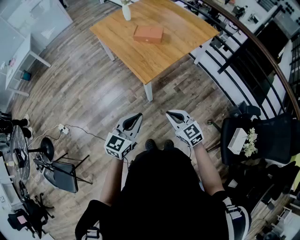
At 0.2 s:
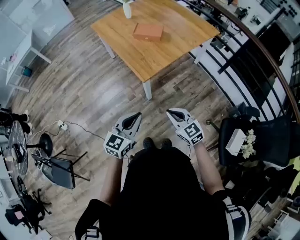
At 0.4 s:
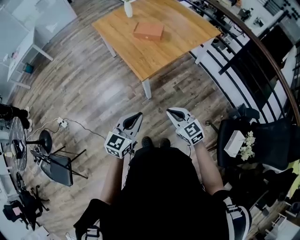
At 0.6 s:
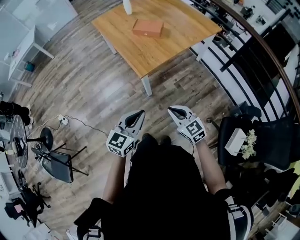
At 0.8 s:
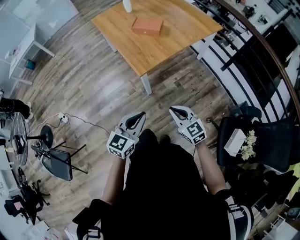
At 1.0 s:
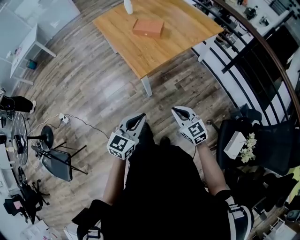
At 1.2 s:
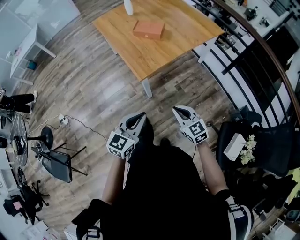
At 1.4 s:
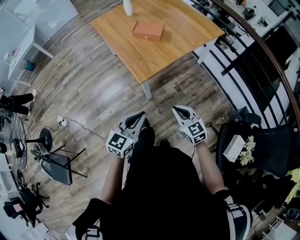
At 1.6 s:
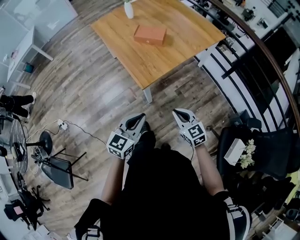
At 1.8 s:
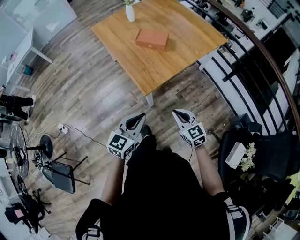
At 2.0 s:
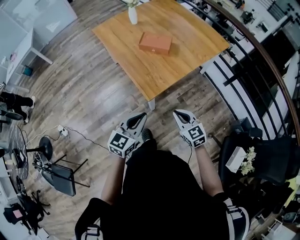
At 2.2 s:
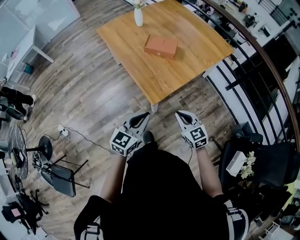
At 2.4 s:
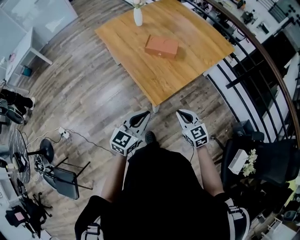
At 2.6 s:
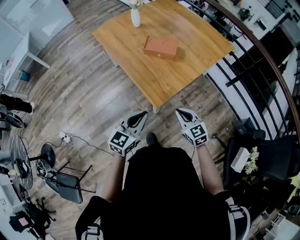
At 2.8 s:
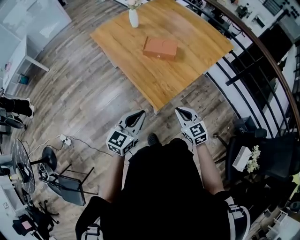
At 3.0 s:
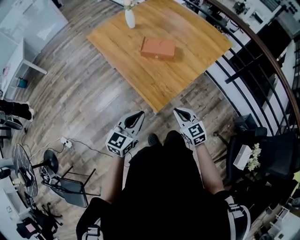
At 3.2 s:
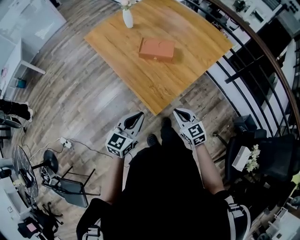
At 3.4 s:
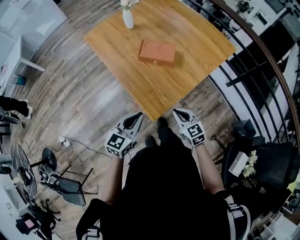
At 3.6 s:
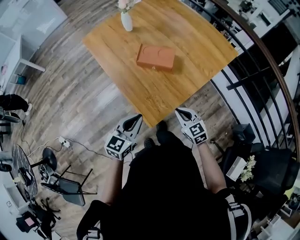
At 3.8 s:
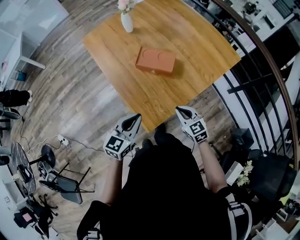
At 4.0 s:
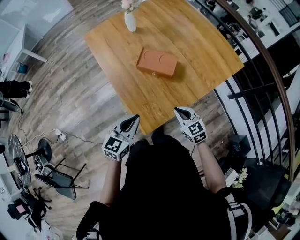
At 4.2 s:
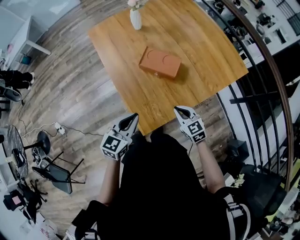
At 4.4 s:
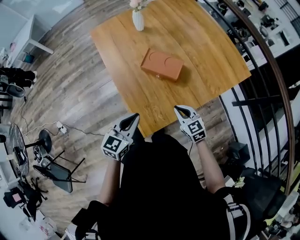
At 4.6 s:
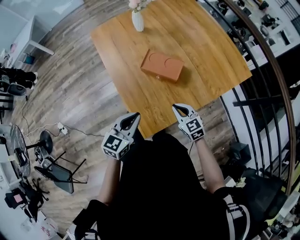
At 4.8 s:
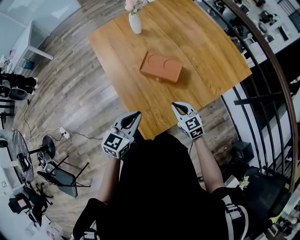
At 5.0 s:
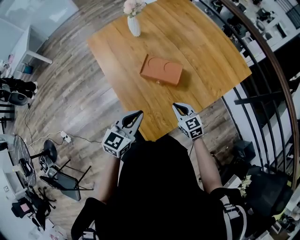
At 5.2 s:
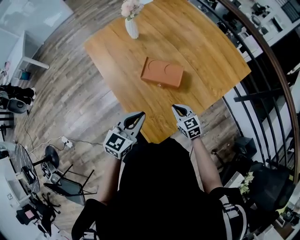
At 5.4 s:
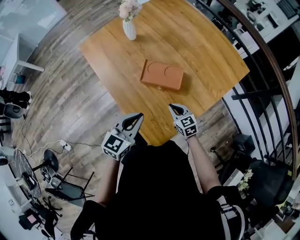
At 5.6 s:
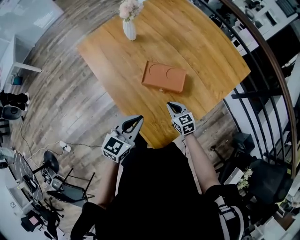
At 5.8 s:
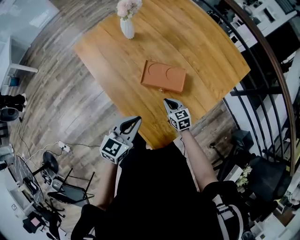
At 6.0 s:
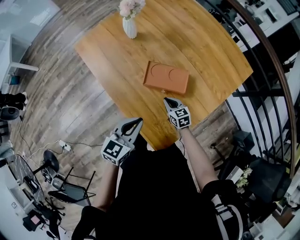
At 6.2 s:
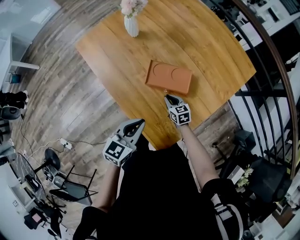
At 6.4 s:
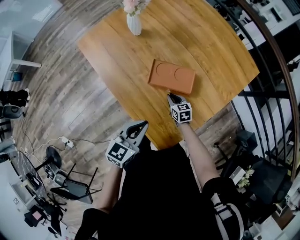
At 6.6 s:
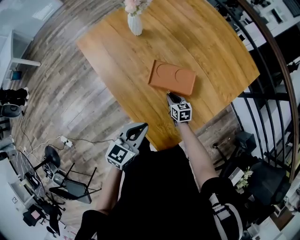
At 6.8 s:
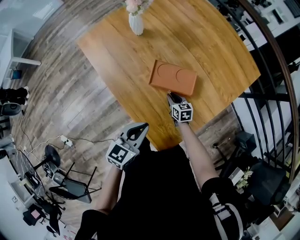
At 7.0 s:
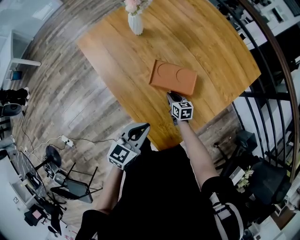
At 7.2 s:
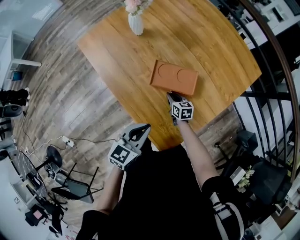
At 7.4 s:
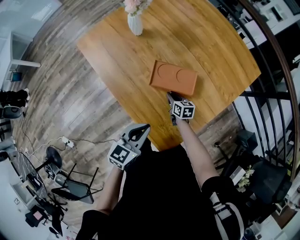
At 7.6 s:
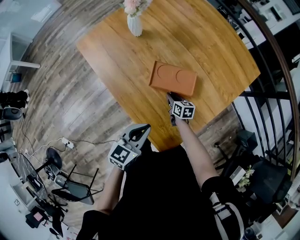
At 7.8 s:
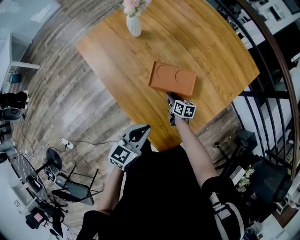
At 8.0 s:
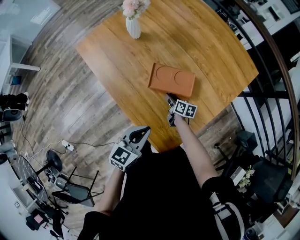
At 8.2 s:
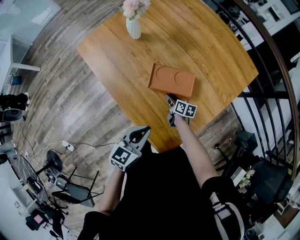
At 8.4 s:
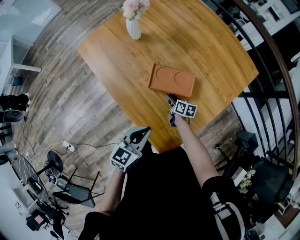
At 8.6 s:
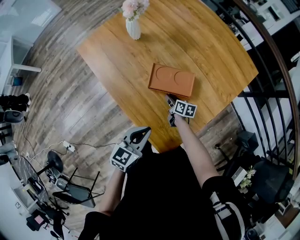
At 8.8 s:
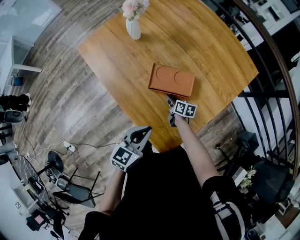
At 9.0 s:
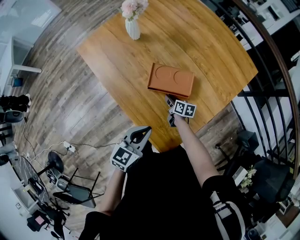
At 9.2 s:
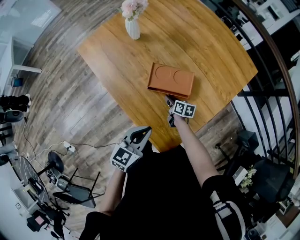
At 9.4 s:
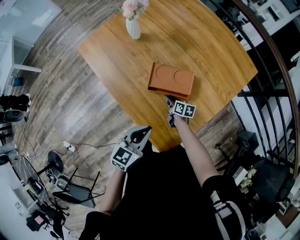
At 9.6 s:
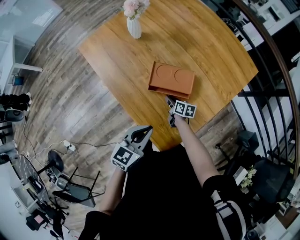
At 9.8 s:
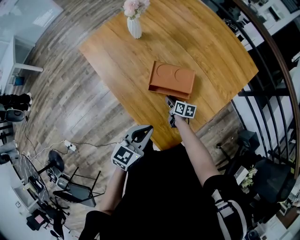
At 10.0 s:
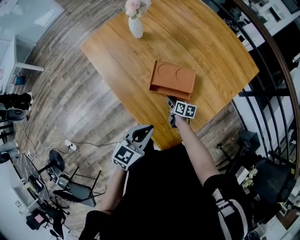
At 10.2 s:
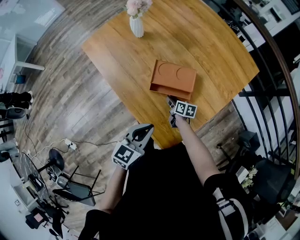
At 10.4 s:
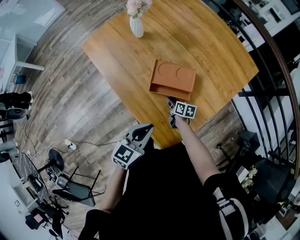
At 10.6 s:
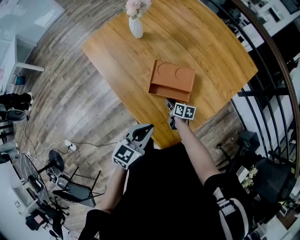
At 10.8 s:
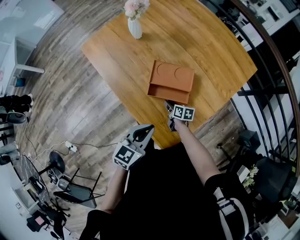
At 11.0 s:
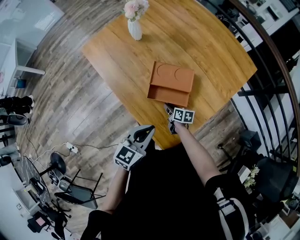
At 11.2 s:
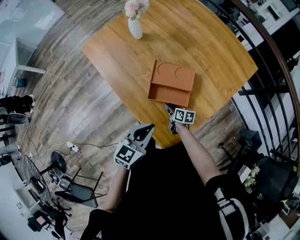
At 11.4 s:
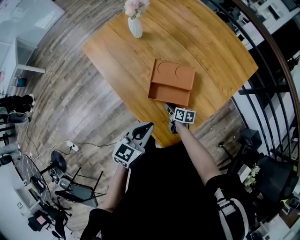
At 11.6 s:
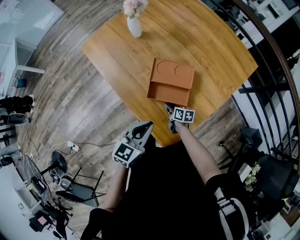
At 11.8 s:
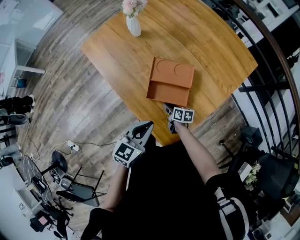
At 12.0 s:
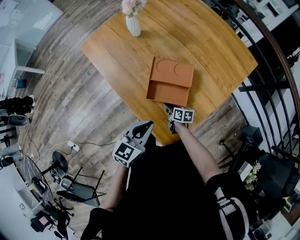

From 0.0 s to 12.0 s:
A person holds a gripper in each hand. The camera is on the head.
From 0.0 s to 1.6 s: The grippers both shift forward and to the right by about 10 cm.
From 1.6 s to 3.0 s: The grippers both shift forward and to the left by some 25 cm.
From 3.0 s to 4.4 s: The right gripper goes about 25 cm forward. The left gripper moves forward and to the right, some 20 cm.
From 4.4 s to 6.0 s: The left gripper is displaced forward and to the left by roughly 15 cm. The right gripper travels forward, downward and to the left by about 25 cm, and swivels some 20 degrees.
From 6.0 s to 7.6 s: The right gripper travels downward by about 5 cm, and changes its angle by approximately 30 degrees.
From 7.6 s to 10.4 s: The grippers move only a little.
From 10.4 s to 12.0 s: The right gripper is displaced backward by approximately 5 cm.

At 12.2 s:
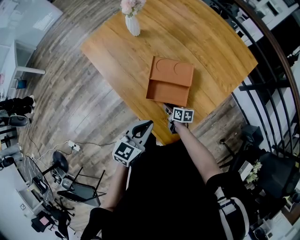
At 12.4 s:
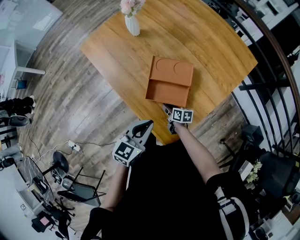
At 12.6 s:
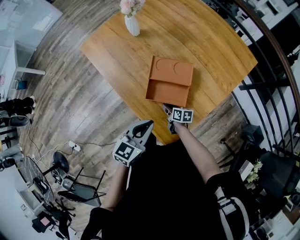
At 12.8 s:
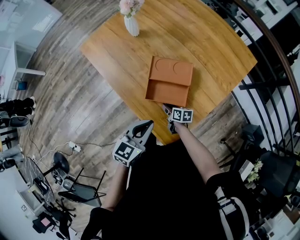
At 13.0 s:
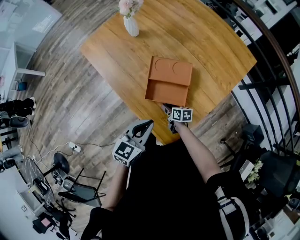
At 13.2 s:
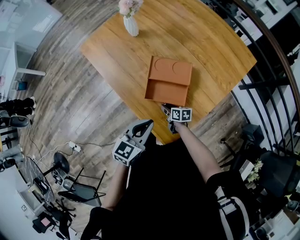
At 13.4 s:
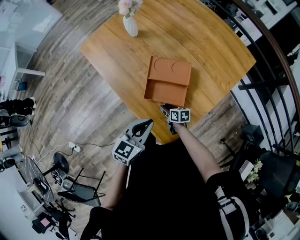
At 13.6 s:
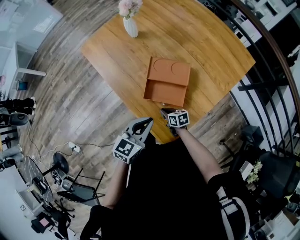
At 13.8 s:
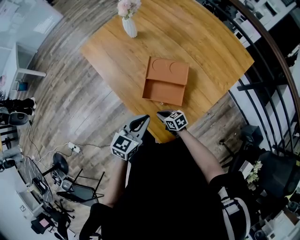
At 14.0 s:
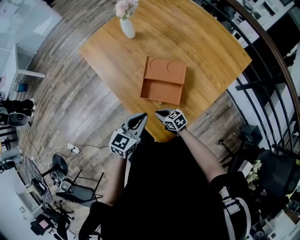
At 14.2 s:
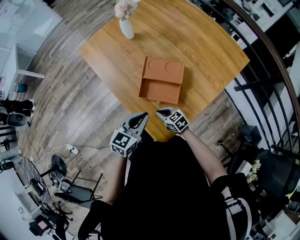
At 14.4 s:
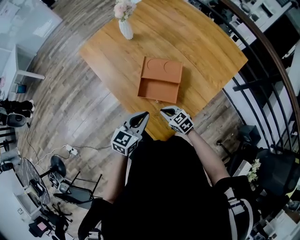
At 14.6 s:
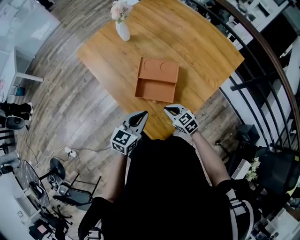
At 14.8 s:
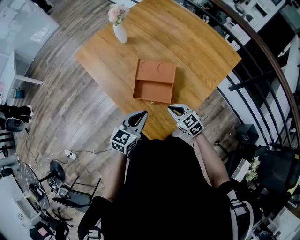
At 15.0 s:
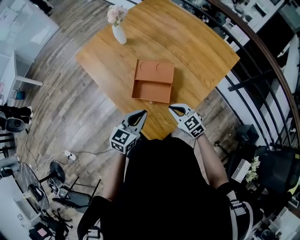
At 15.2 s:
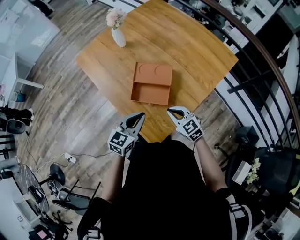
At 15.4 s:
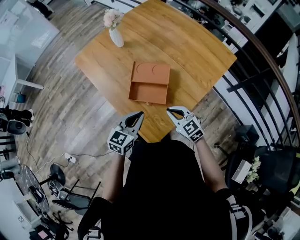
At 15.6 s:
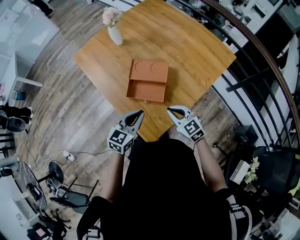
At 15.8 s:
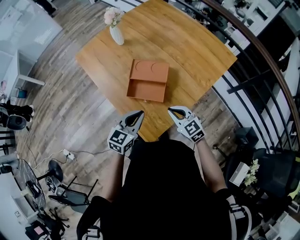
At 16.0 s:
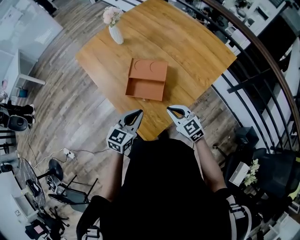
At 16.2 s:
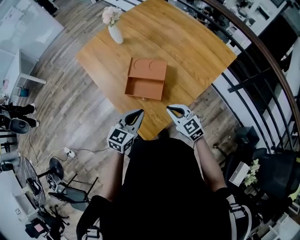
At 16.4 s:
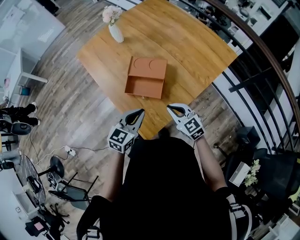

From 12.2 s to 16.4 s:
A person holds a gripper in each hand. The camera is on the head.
From 12.2 s to 13.6 s: The right gripper swivels approximately 20 degrees.
From 13.6 s to 15.0 s: The right gripper is displaced upward and to the right by some 20 cm, and rotates around the line of its fingers by some 40 degrees, counterclockwise from behind.
From 15.0 s to 16.4 s: Both grippers travel together to the right, about 5 cm.

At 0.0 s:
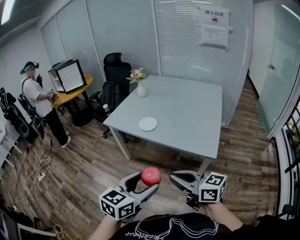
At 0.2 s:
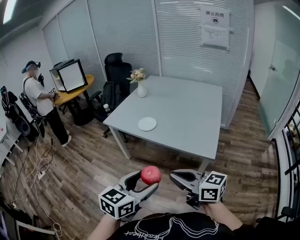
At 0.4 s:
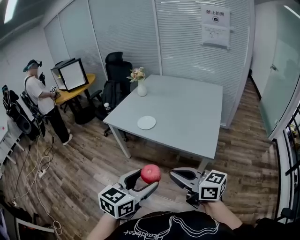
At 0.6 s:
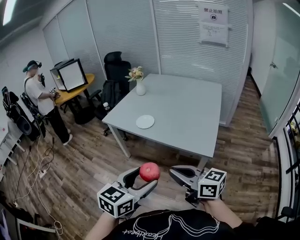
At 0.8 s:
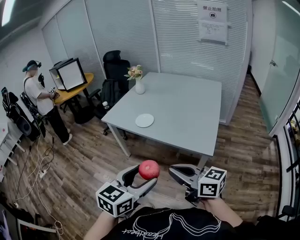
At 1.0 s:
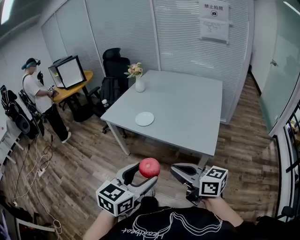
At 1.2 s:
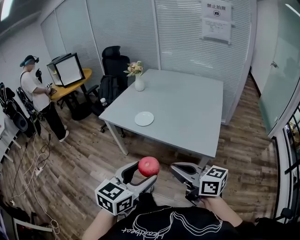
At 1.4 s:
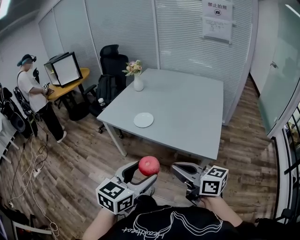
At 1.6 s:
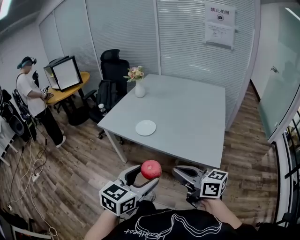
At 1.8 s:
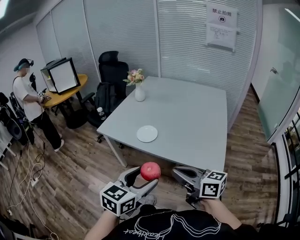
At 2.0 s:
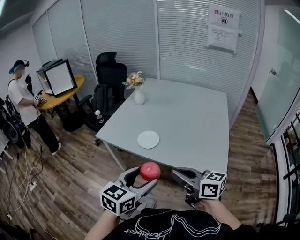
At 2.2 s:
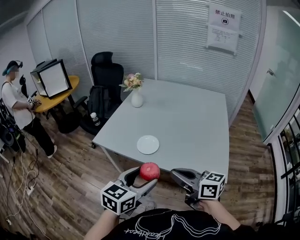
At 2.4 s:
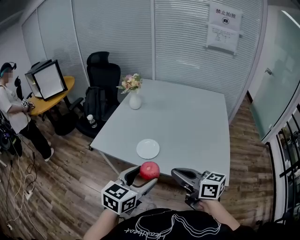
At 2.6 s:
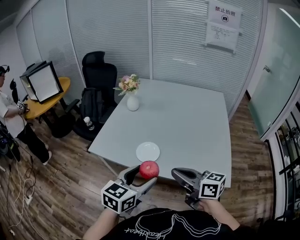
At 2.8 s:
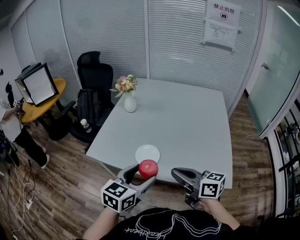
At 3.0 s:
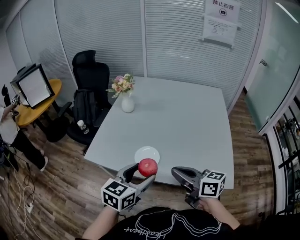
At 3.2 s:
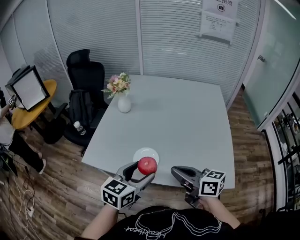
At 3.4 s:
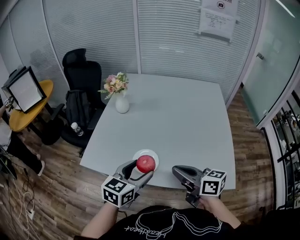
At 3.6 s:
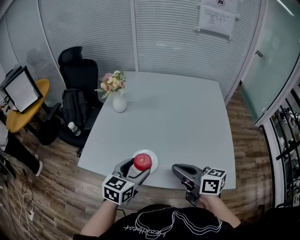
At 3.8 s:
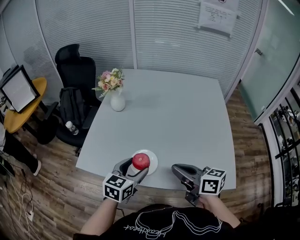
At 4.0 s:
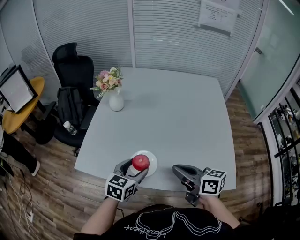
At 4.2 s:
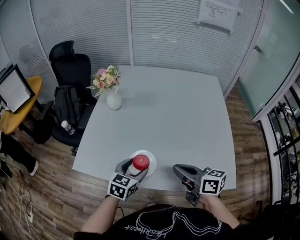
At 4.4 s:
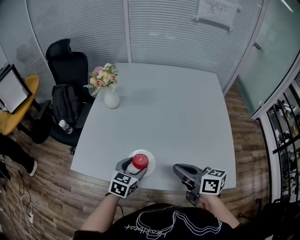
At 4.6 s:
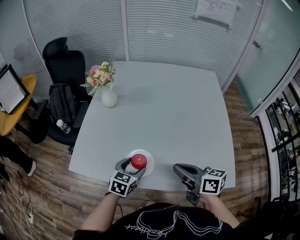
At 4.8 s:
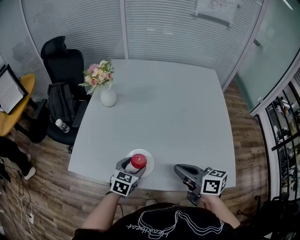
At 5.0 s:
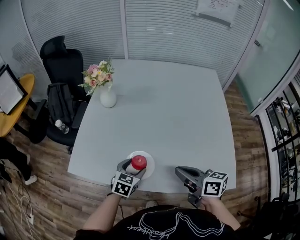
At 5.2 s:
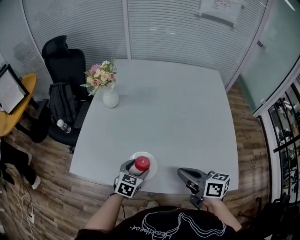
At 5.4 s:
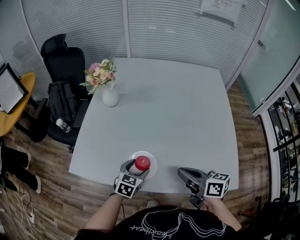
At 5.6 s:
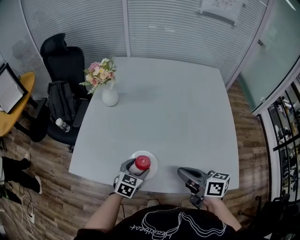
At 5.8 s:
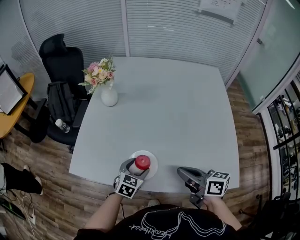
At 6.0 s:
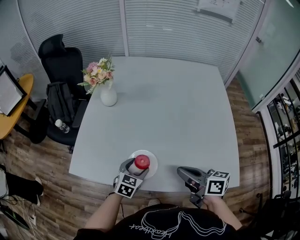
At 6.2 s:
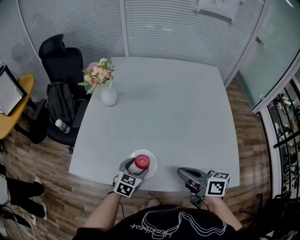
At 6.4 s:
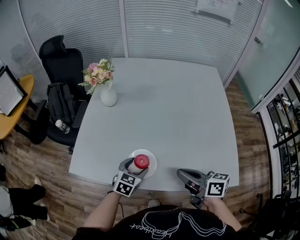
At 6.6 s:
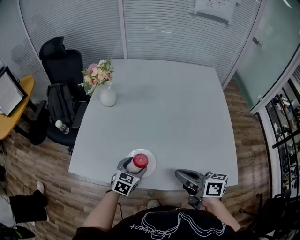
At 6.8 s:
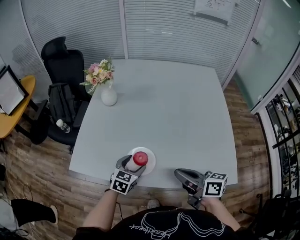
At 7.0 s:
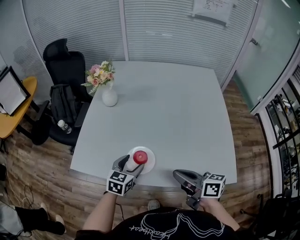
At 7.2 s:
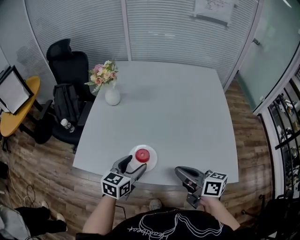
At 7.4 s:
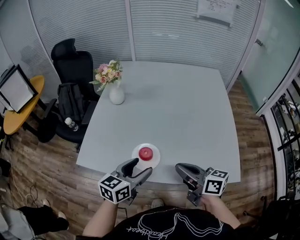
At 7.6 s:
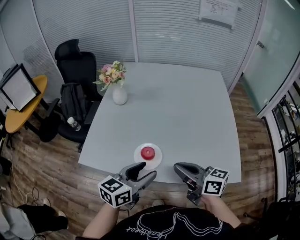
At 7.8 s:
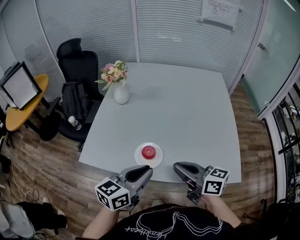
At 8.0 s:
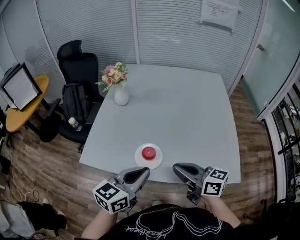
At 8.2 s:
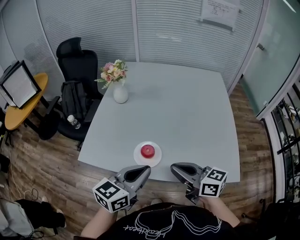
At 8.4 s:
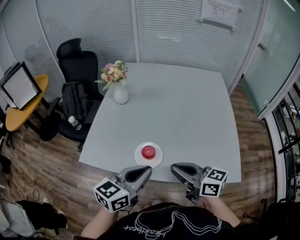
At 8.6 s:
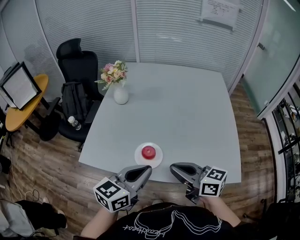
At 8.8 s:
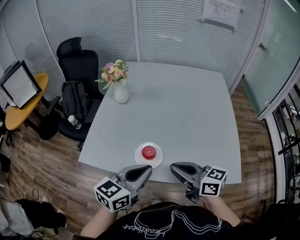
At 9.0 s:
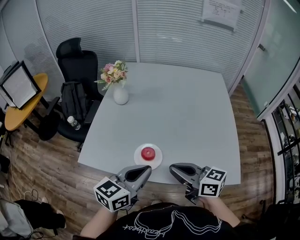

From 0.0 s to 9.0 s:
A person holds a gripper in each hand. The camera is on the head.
From 0.0 s to 1.6 s: The two grippers go about 10 cm forward.
From 1.6 s to 3.0 s: Both grippers move forward, about 30 cm.
From 3.0 s to 4.4 s: The right gripper goes about 10 cm forward and downward. The left gripper heads downward and forward, covering approximately 20 cm.
From 4.4 s to 6.0 s: The left gripper travels downward by about 5 cm.
From 6.0 s to 7.6 s: The left gripper travels upward and backward by roughly 20 cm, and rotates some 30 degrees. The right gripper is displaced upward by roughly 5 cm.
From 7.6 s to 9.0 s: The left gripper closes.
